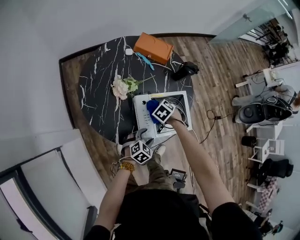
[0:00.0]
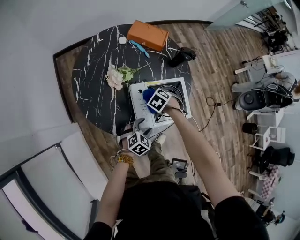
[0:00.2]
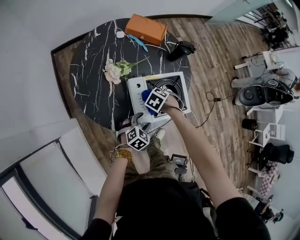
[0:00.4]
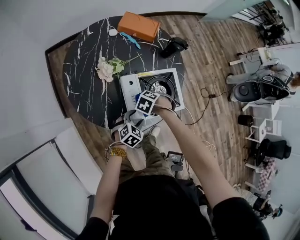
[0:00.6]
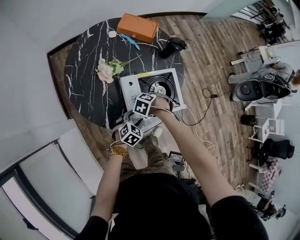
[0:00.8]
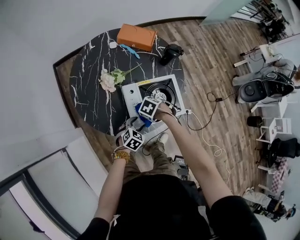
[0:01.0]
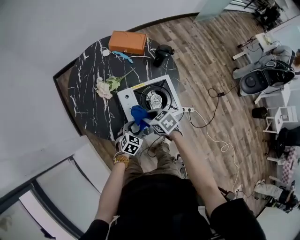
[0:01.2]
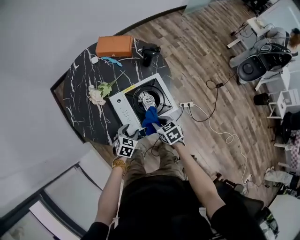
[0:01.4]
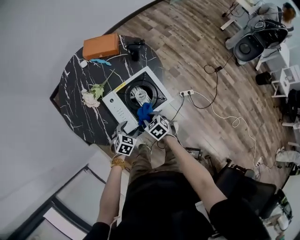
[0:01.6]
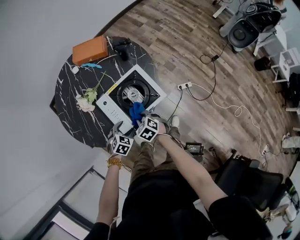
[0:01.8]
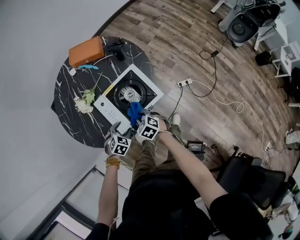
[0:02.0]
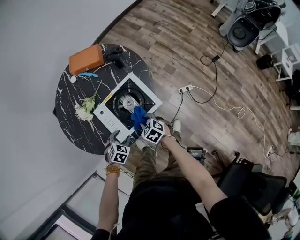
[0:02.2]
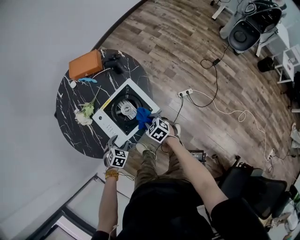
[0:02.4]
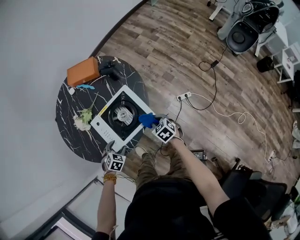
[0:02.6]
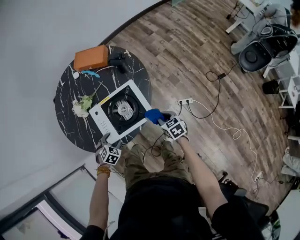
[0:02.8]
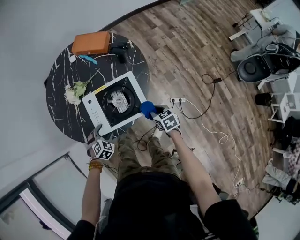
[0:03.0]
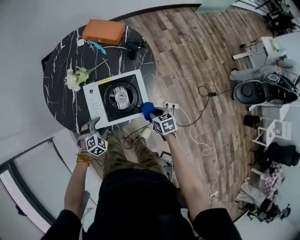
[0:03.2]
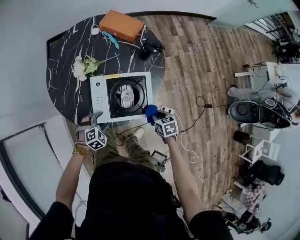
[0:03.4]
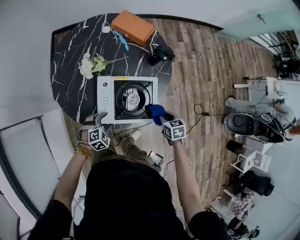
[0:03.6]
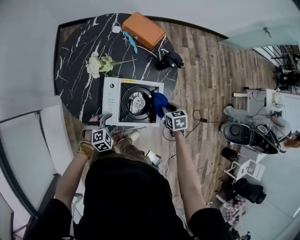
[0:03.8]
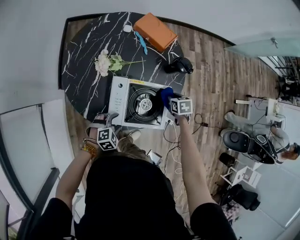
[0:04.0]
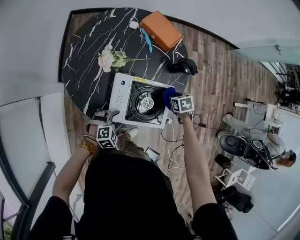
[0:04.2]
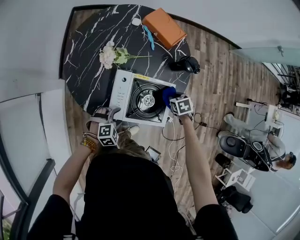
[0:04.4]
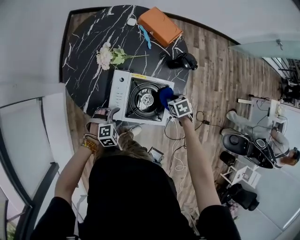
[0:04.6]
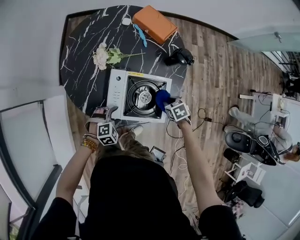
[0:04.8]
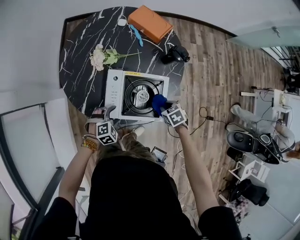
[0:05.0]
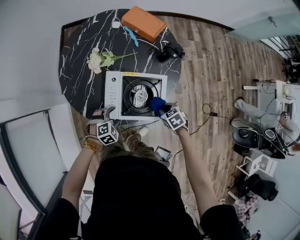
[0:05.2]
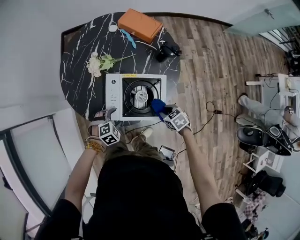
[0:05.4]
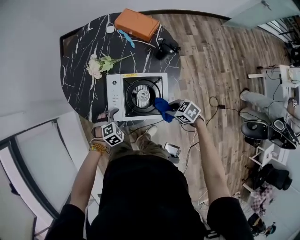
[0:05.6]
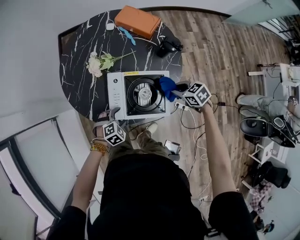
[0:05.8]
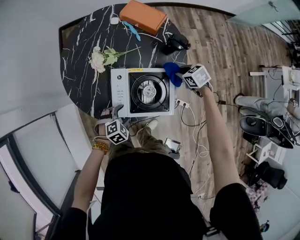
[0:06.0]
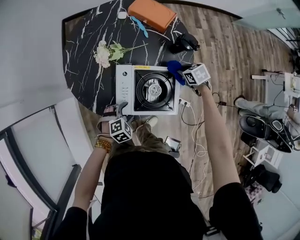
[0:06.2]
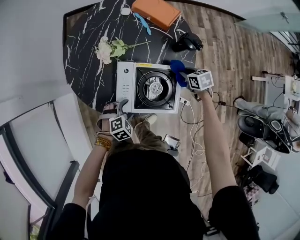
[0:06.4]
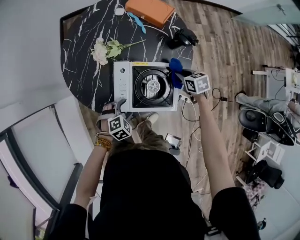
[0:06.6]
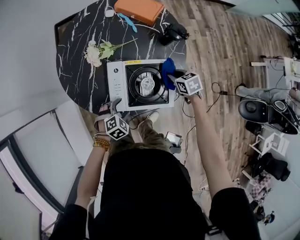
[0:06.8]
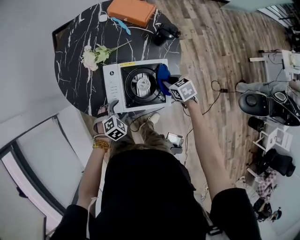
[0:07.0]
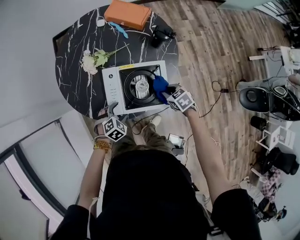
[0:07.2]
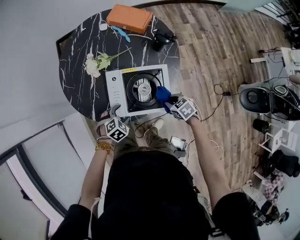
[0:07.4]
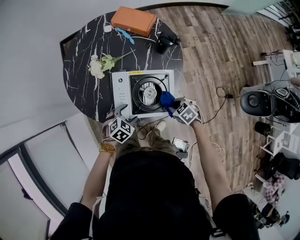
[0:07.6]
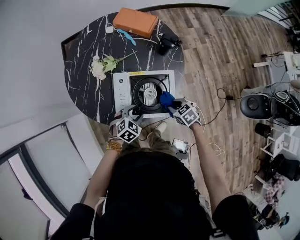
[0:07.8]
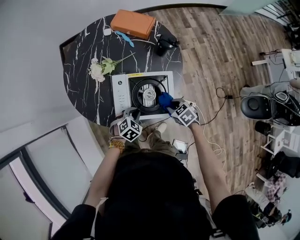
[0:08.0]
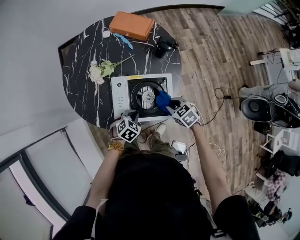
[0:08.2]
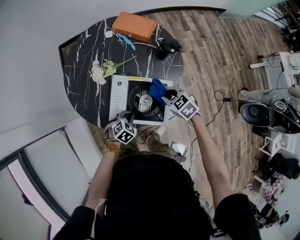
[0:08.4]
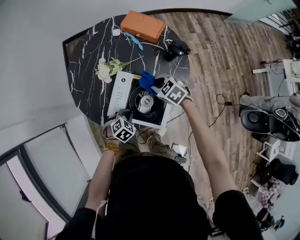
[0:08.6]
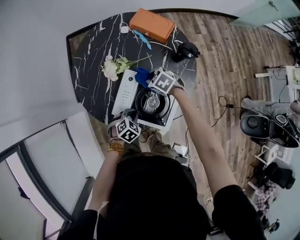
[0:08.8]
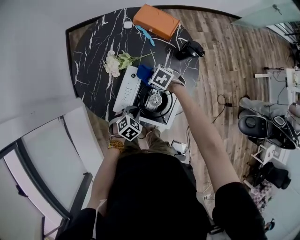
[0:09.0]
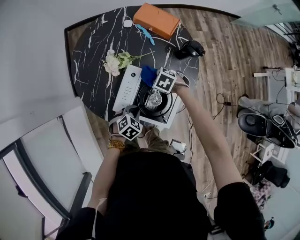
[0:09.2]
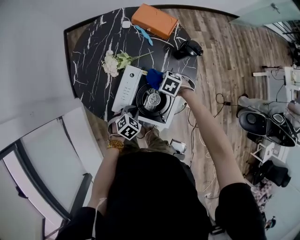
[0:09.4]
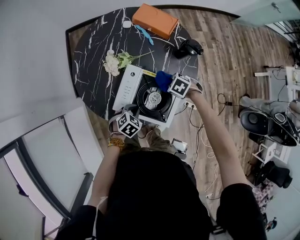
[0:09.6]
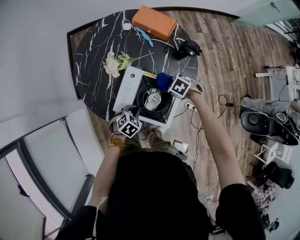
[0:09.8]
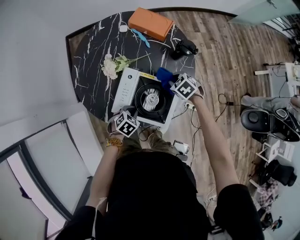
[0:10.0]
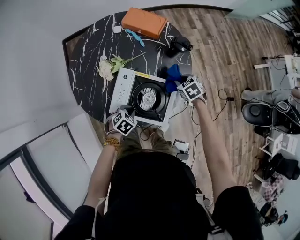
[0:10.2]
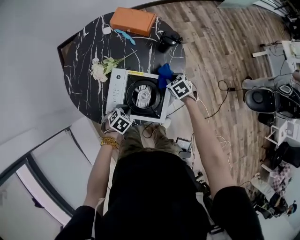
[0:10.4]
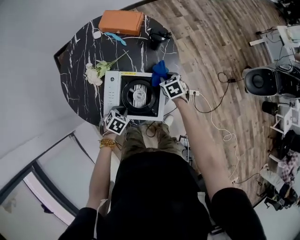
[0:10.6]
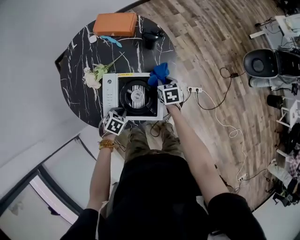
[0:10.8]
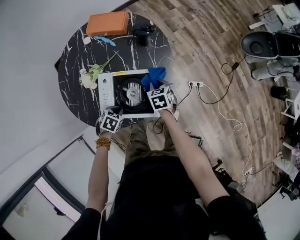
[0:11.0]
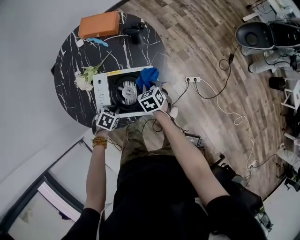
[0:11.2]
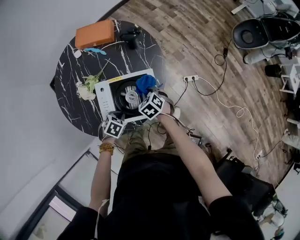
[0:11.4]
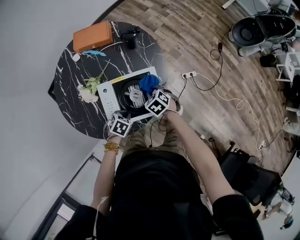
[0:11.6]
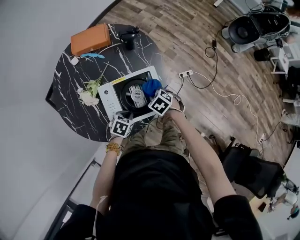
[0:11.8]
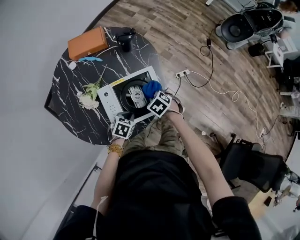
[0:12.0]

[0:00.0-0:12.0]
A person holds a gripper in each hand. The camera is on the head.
0.0 to 1.6 s: The right gripper moves approximately 10 cm upward and comes back, and rotates approximately 40 degrees.
1.6 to 3.0 s: The right gripper heads to the right, covering some 20 cm, while the left gripper rotates some 20 degrees.
3.0 to 4.4 s: The right gripper is displaced forward by about 15 cm, and changes its angle by some 40 degrees.
6.0 to 7.6 s: The right gripper is displaced backward by some 20 cm.
7.6 to 9.0 s: The right gripper moves about 10 cm upward and comes back, and changes its angle by roughly 20 degrees, while the left gripper changes place by some 5 cm, and closes up.
9.0 to 10.4 s: The right gripper changes place by some 20 cm, and rotates some 40 degrees.
10.4 to 12.0 s: The right gripper shifts by about 15 cm, and changes its angle by about 20 degrees.

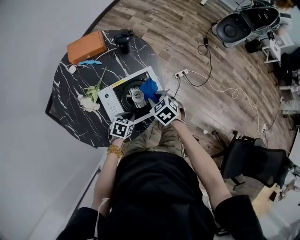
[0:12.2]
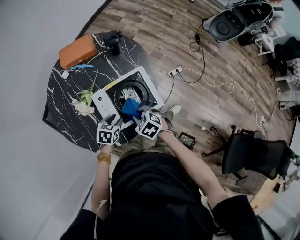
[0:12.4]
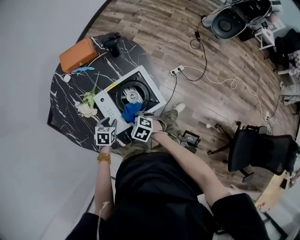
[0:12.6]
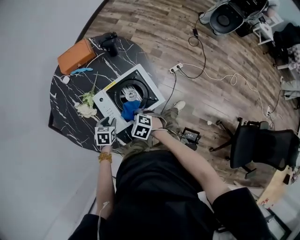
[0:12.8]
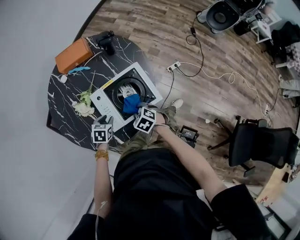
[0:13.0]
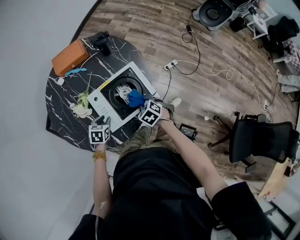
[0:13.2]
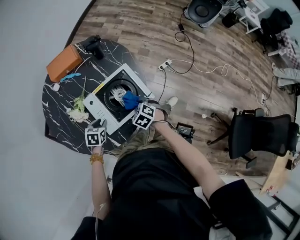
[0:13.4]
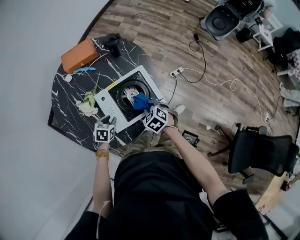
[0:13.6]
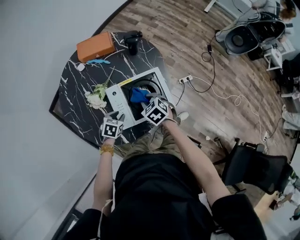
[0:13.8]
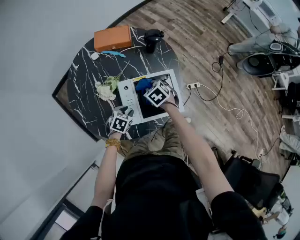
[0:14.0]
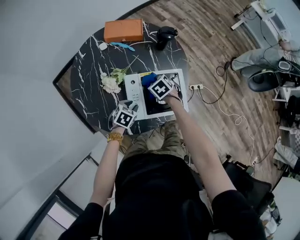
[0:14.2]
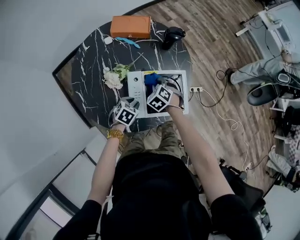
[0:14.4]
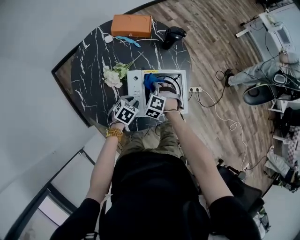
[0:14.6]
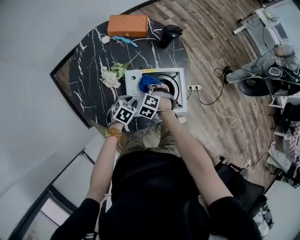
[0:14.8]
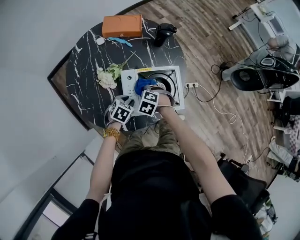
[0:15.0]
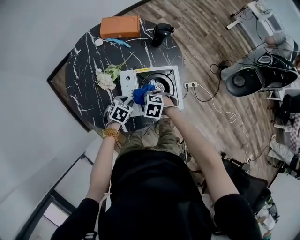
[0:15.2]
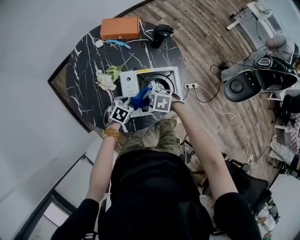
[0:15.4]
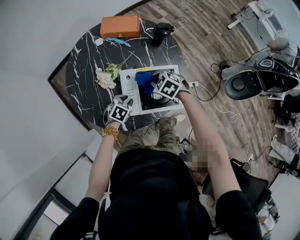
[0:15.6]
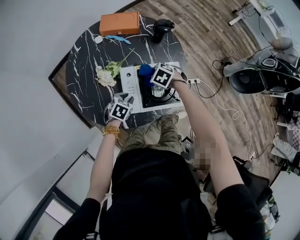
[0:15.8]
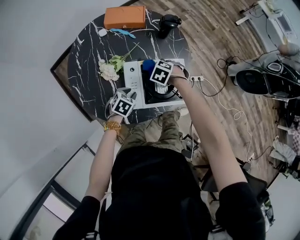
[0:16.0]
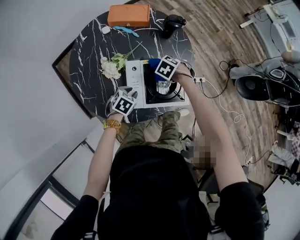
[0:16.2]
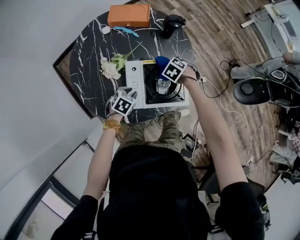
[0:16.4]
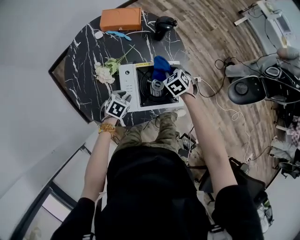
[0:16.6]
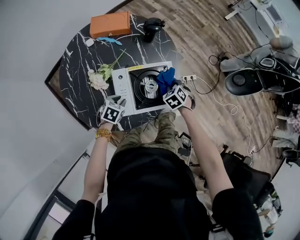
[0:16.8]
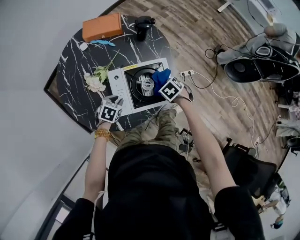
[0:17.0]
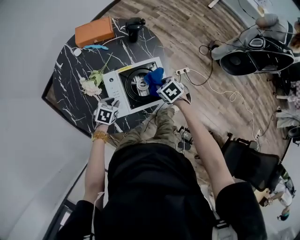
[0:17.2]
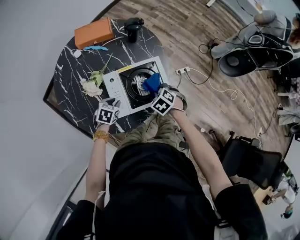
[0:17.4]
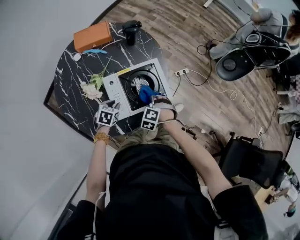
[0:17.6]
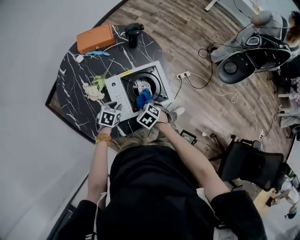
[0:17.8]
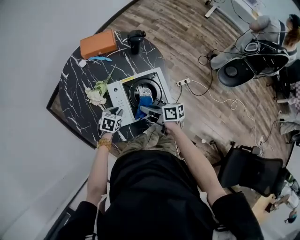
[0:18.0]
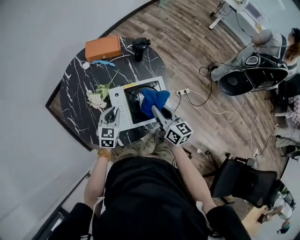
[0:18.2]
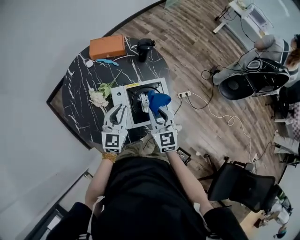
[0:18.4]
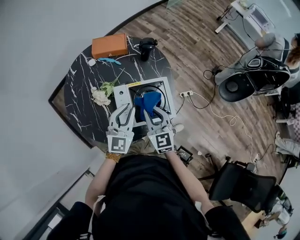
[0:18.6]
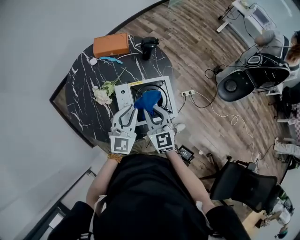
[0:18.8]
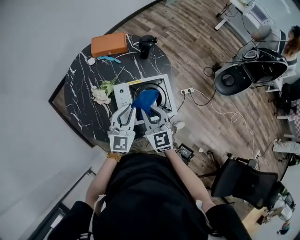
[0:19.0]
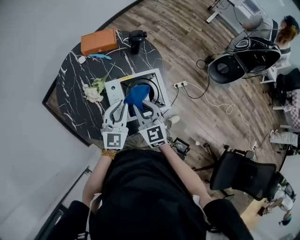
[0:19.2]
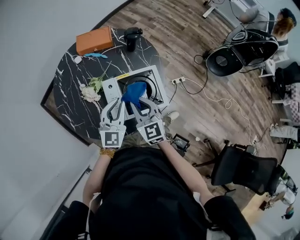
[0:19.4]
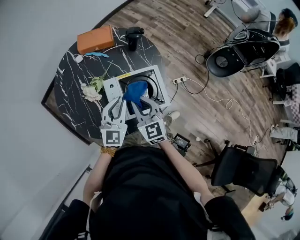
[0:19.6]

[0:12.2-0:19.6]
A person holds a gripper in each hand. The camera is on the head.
12.2 to 13.6 s: The left gripper shifts about 10 cm to the left. Meanwhile the right gripper travels backward by roughly 5 cm, and goes to the left and returns, approximately 10 cm each way.
13.6 to 15.2 s: The right gripper shifts by about 15 cm, and rolls counterclockwise, seen from behind, by about 40 degrees.
15.2 to 16.6 s: The right gripper moves up and down over some 5 cm, changing direction 2 times, and turns by roughly 40 degrees.
16.6 to 18.2 s: The right gripper swings up and down, some 20 cm each way, with 3 reversals, and tilts its fingers about 50 degrees upward, while the left gripper travels upward by approximately 10 cm, and swivels about 30 degrees.
18.2 to 19.6 s: The left gripper travels upward and to the right by some 15 cm, and turns by approximately 20 degrees. The right gripper heads to the left, covering approximately 10 cm, and changes its angle by some 40 degrees.

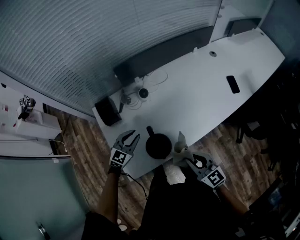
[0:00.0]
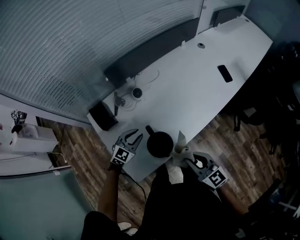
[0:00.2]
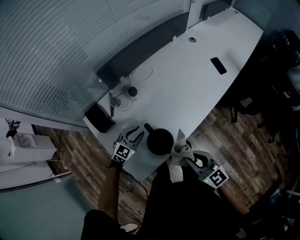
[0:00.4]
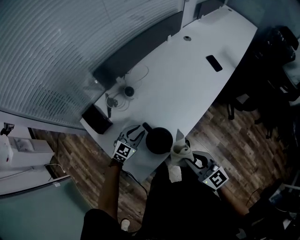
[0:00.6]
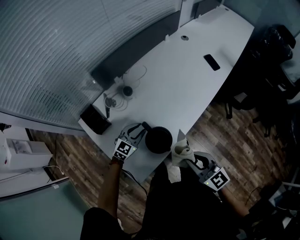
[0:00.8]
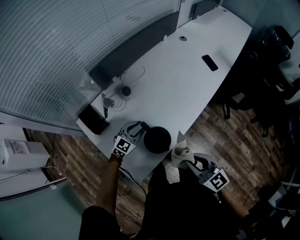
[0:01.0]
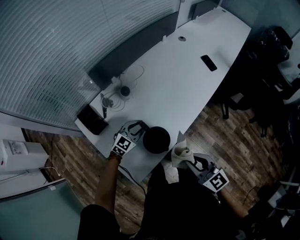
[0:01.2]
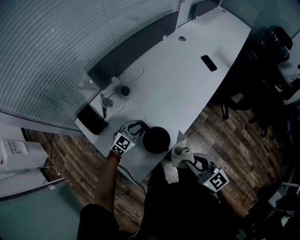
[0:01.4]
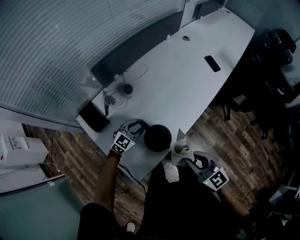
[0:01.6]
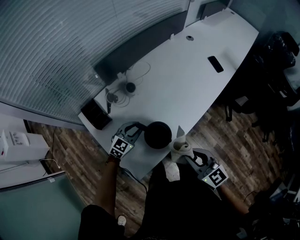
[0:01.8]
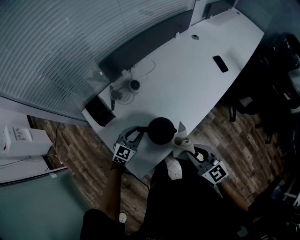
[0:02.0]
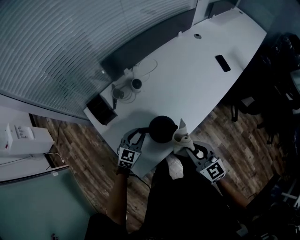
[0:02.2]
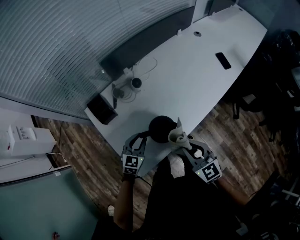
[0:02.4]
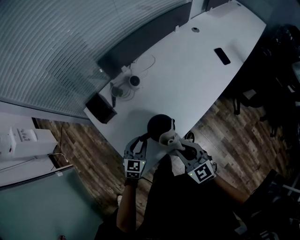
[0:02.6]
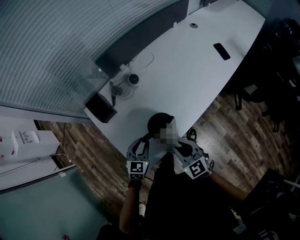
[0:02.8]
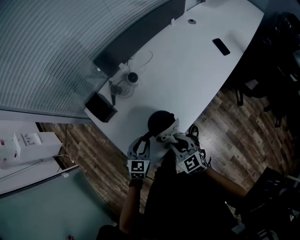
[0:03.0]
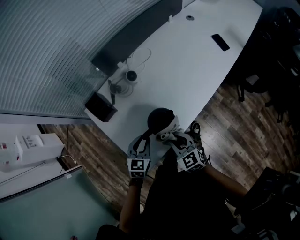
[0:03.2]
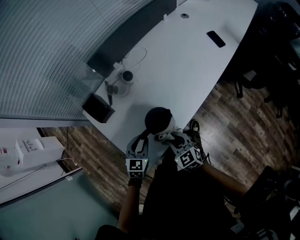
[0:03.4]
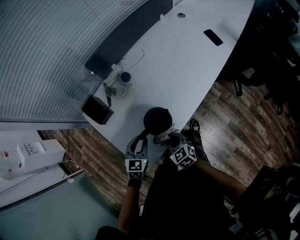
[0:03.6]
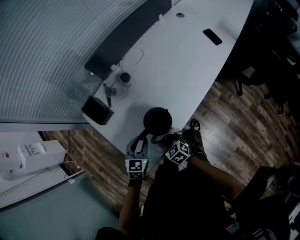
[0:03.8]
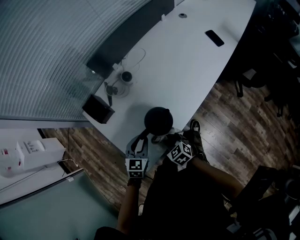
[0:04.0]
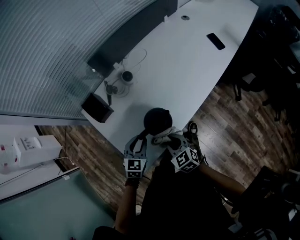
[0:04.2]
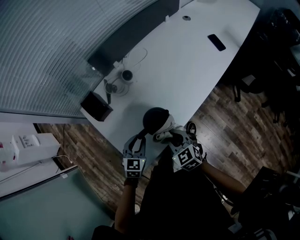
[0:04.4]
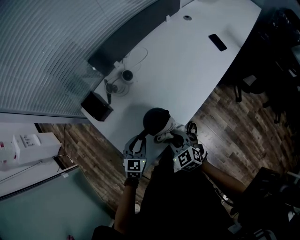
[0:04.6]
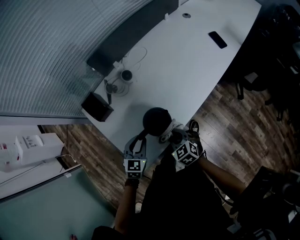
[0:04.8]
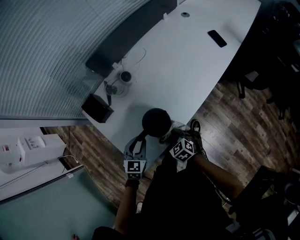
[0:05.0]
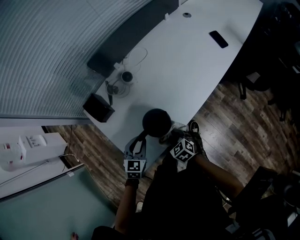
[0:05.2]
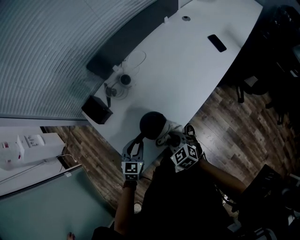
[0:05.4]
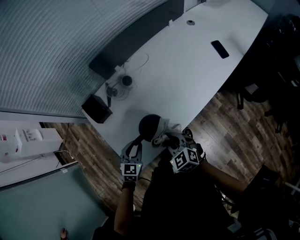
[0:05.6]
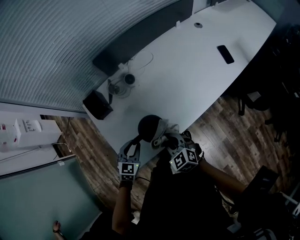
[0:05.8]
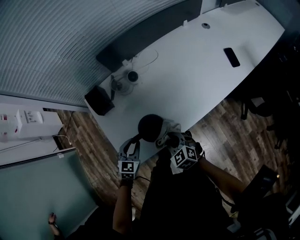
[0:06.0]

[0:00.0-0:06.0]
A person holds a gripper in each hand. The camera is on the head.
0.0 to 1.6 s: The right gripper shifts by about 5 cm. The left gripper goes roughly 5 cm downward, and swivels about 20 degrees.
1.6 to 3.0 s: The right gripper heads downward and to the left, covering approximately 15 cm. Meanwhile the left gripper shifts about 15 cm backward and to the left, and turns by roughly 40 degrees.
3.0 to 4.4 s: The right gripper moves about 15 cm downward and comes back.
4.4 to 6.0 s: The right gripper goes up and down, some 10 cm each way, reversing 2 times, and swivels approximately 20 degrees.
